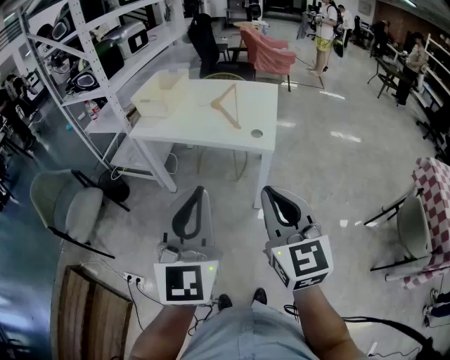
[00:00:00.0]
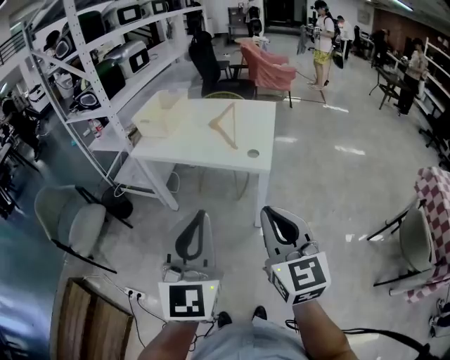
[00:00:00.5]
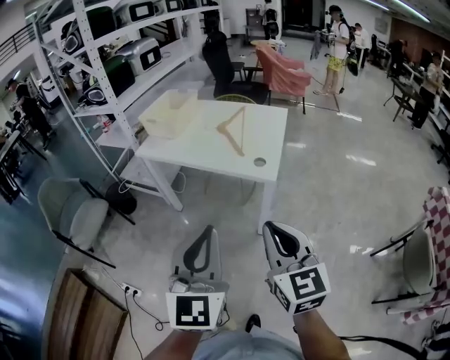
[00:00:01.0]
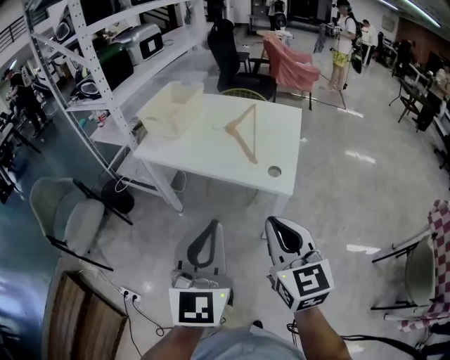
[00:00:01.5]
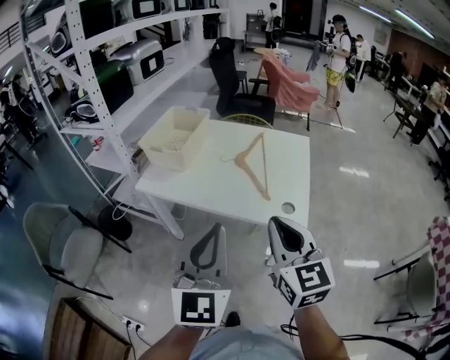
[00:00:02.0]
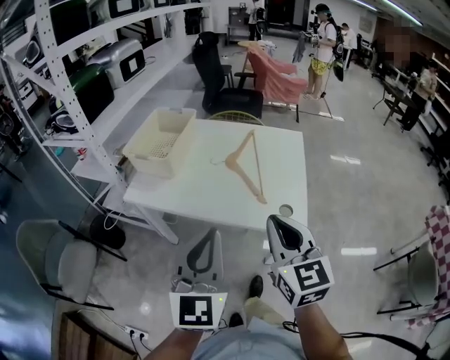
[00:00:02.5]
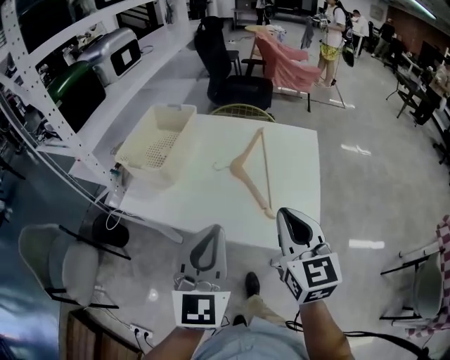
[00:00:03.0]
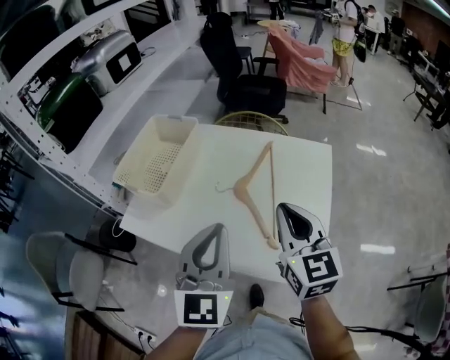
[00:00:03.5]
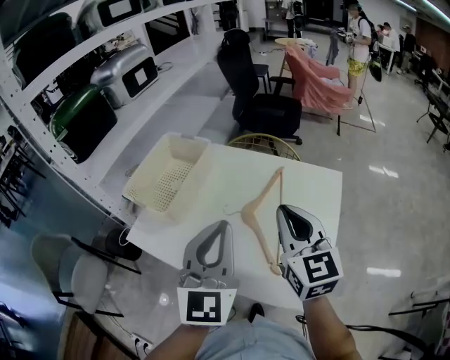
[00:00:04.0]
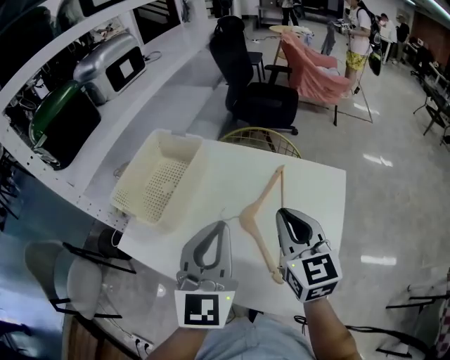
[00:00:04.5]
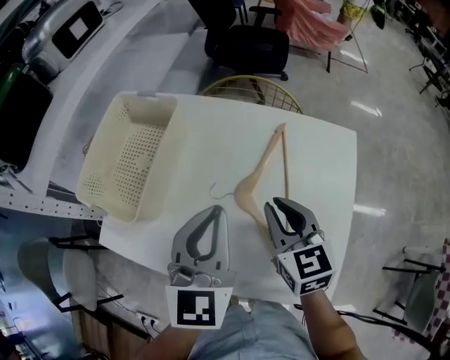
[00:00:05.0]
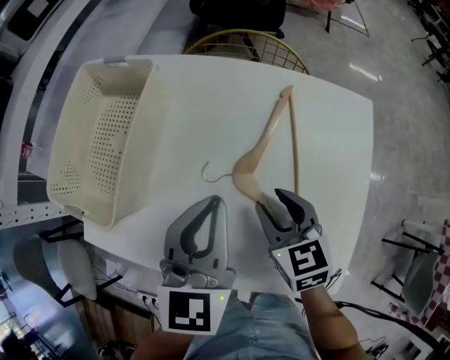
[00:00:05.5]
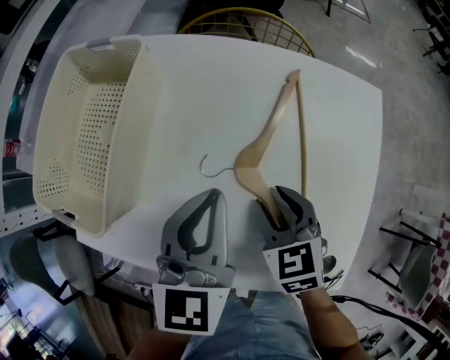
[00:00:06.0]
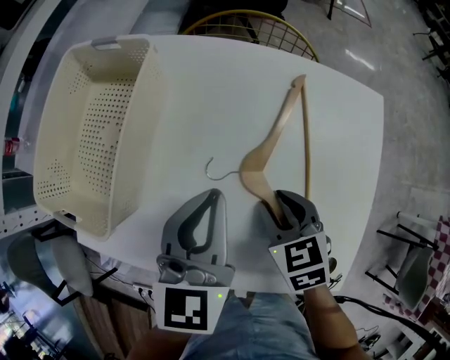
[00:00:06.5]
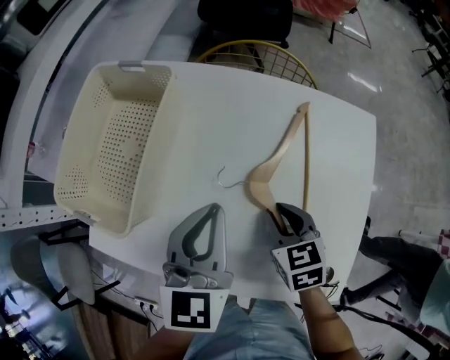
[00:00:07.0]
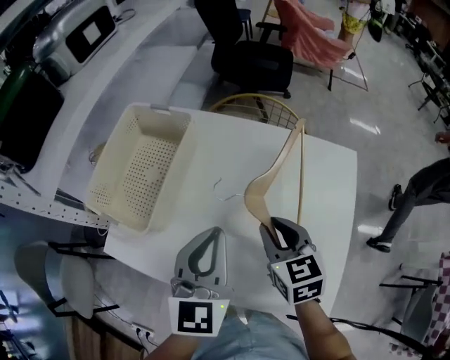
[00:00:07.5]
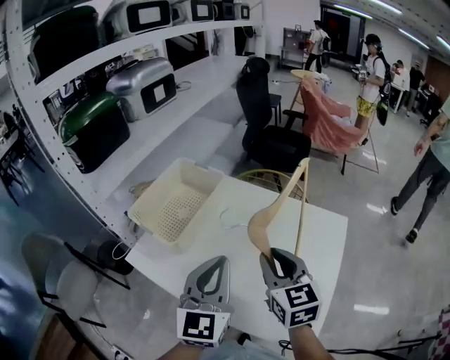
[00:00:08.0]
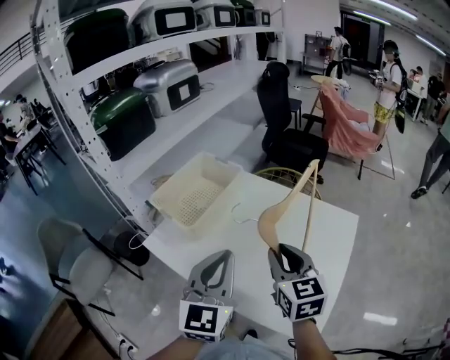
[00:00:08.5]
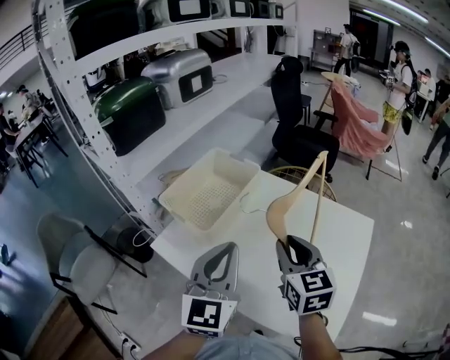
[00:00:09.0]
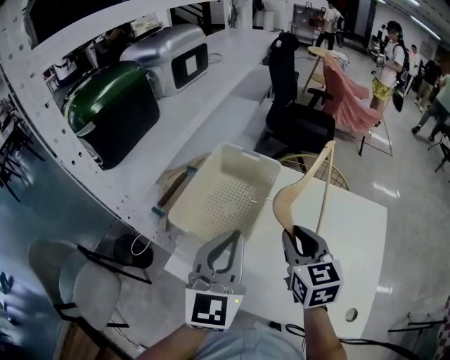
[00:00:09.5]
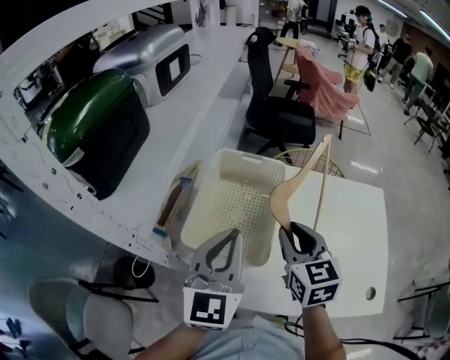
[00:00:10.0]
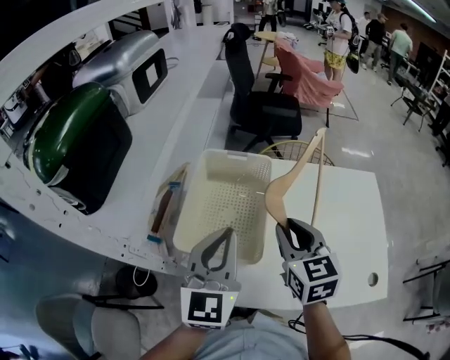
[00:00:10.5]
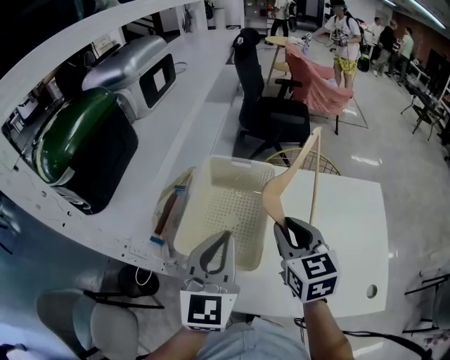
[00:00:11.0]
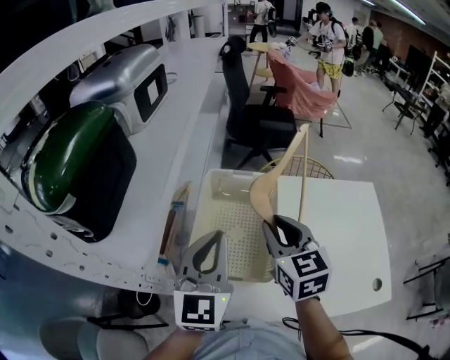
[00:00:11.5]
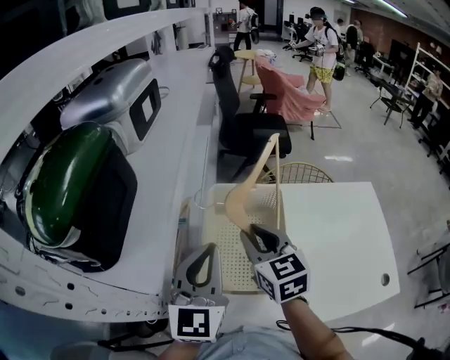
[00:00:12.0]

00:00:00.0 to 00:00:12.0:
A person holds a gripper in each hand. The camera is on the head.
00:00:00.0 to 00:00:02.0: Both grippers travel together forward, some 30 cm.
00:00:02.0 to 00:00:04.0: Both grippers move forward, some 35 cm.
00:00:04.0 to 00:00:06.0: The left gripper goes some 25 cm downward and forward, and changes its angle by some 30 degrees. Meanwhile the right gripper moves downward, roughly 30 cm, angles its fingers downward, by roughly 40 degrees, and opens its fingers.
00:00:06.0 to 00:00:08.0: The left gripper is displaced upward and backward by roughly 20 cm, and turns by some 20 degrees, while the right gripper travels upward by some 25 cm, and rotates about 30 degrees.
00:00:08.0 to 00:00:10.0: The grippers both shift to the left and forward by approximately 30 cm.
00:00:10.0 to 00:00:12.0: Both grippers travel together to the left and forward, some 15 cm.

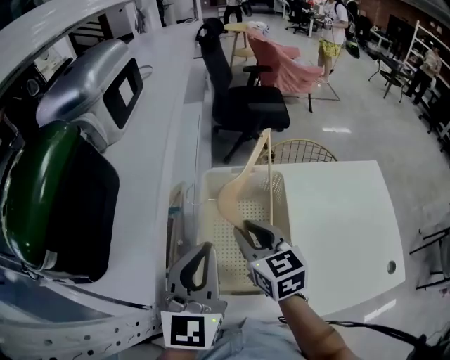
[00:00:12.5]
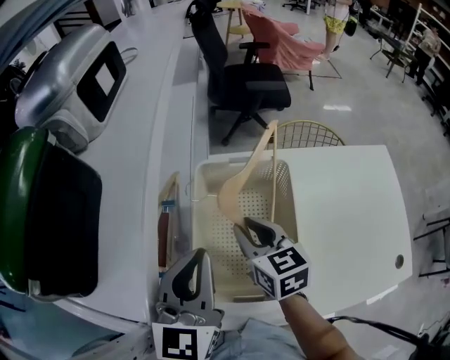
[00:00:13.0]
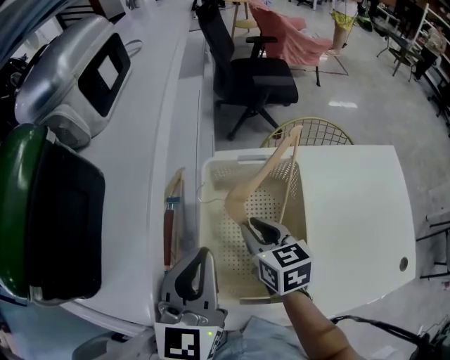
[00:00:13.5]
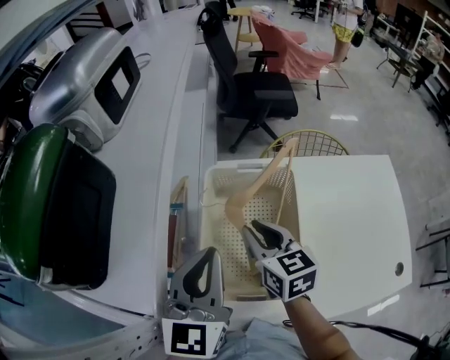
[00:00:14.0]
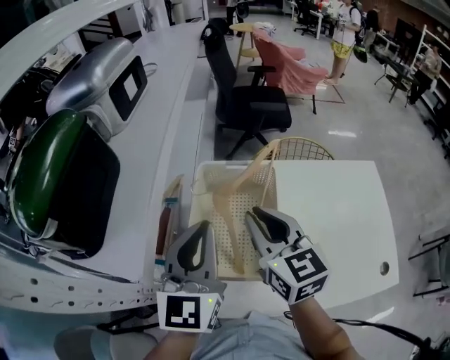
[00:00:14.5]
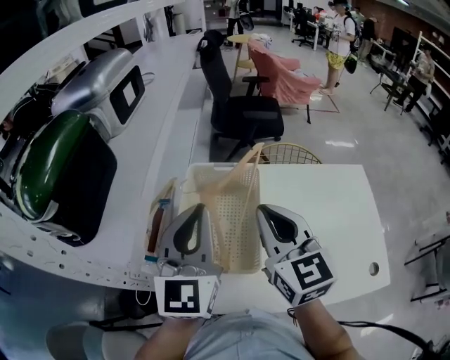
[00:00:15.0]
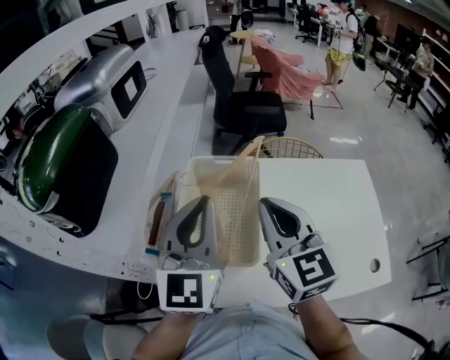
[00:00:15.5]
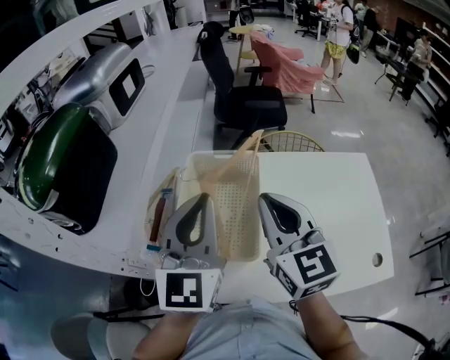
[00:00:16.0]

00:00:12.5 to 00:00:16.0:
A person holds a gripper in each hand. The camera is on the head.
00:00:12.5 to 00:00:14.5: The right gripper is displaced upward by about 10 cm.
00:00:14.5 to 00:00:16.0: The left gripper goes about 5 cm to the right, while the right gripper heads to the right and backward, covering some 10 cm.

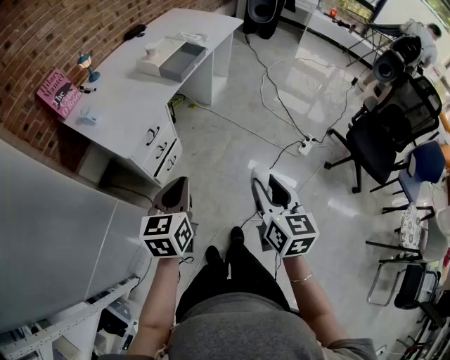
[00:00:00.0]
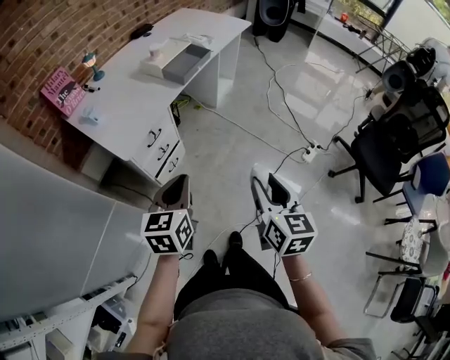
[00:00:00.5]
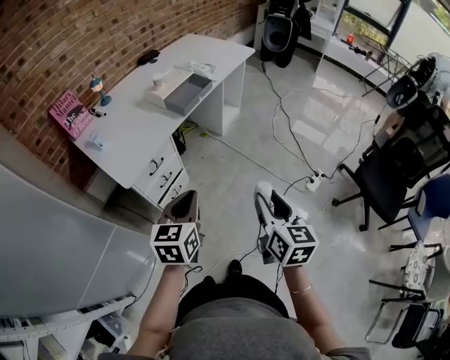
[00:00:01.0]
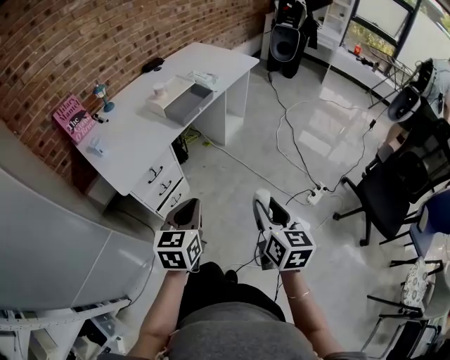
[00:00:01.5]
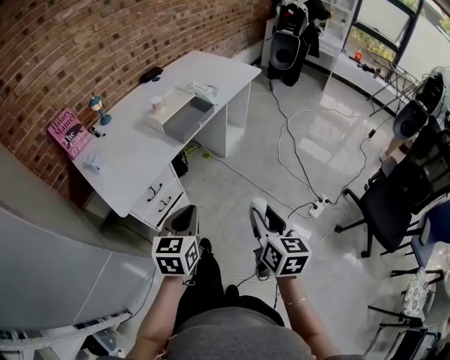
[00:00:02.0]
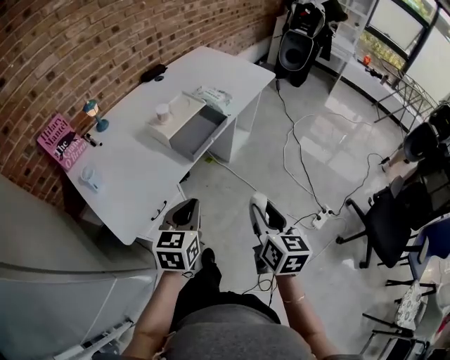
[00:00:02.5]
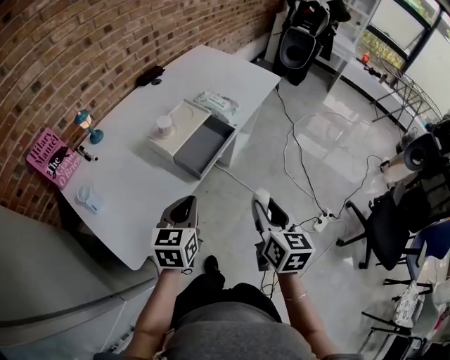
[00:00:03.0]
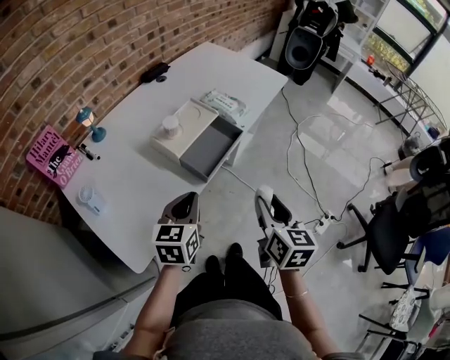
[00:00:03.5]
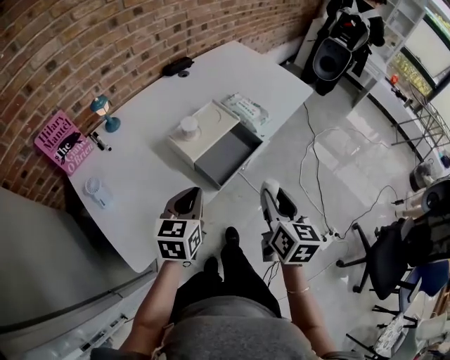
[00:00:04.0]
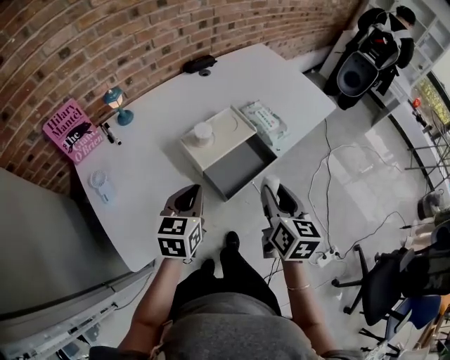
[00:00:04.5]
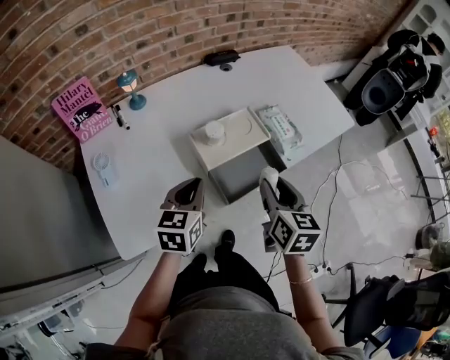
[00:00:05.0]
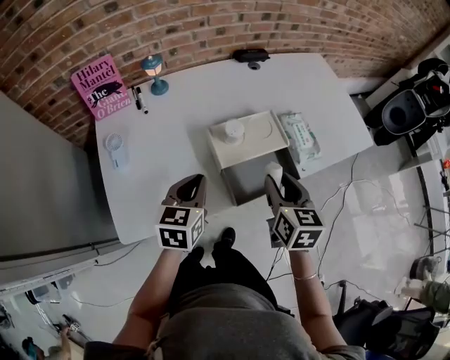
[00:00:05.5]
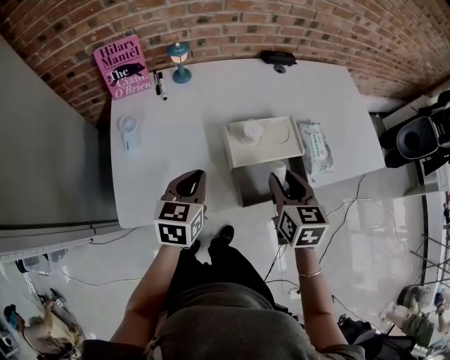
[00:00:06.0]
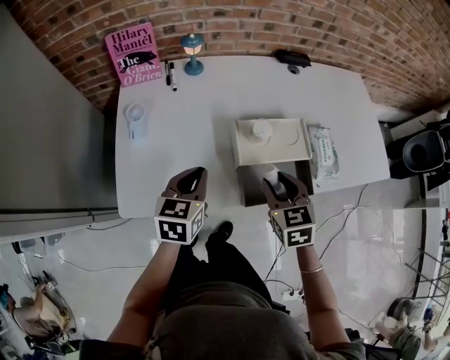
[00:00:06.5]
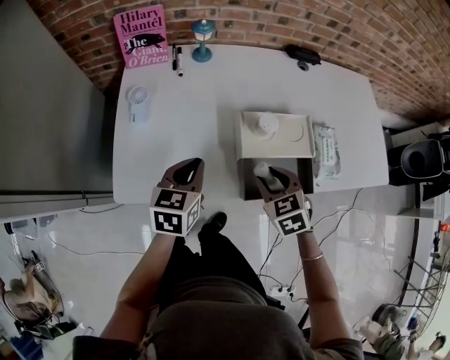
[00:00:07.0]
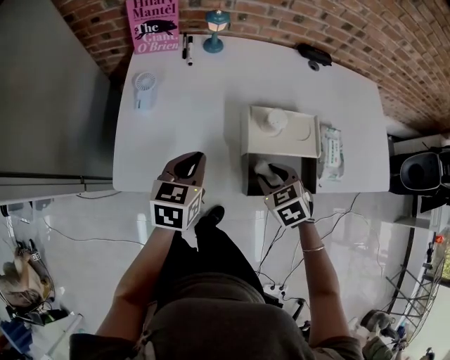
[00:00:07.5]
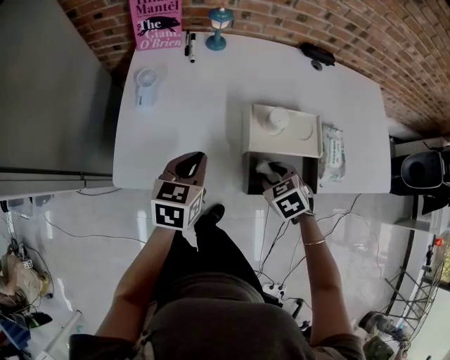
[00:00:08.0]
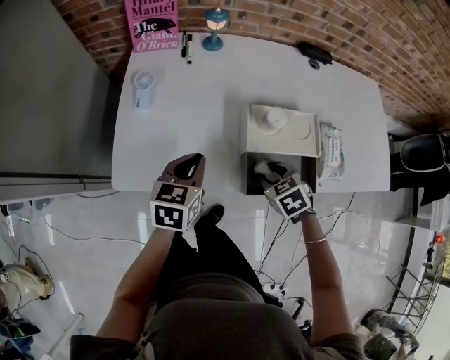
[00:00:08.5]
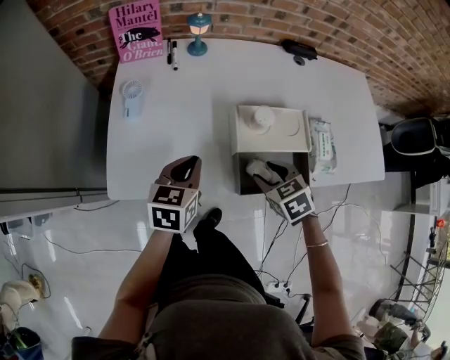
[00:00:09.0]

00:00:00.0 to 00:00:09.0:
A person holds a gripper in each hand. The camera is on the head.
00:00:00.0 to 00:00:02.0: Both grippers move forward and to the right, some 20 cm.
00:00:02.0 to 00:00:04.5: The right gripper moves forward, some 40 cm. Meanwhile the left gripper travels forward and to the left by some 35 cm.
00:00:04.5 to 00:00:07.0: The right gripper moves approximately 15 cm, and changes its angle by about 70 degrees, while the left gripper ends up some 10 cm from where it was, and swivels approximately 30 degrees.
00:00:07.0 to 00:00:09.0: There are only small adjustments of the grippers.

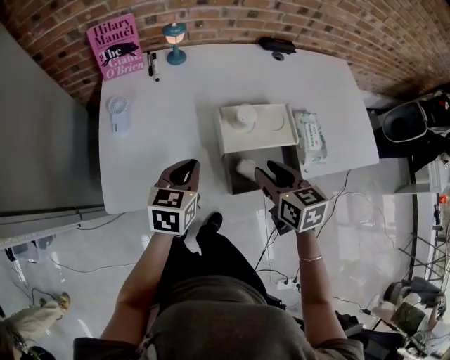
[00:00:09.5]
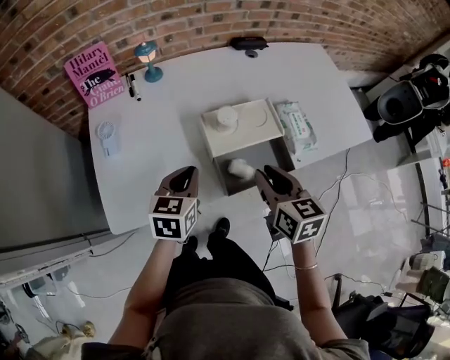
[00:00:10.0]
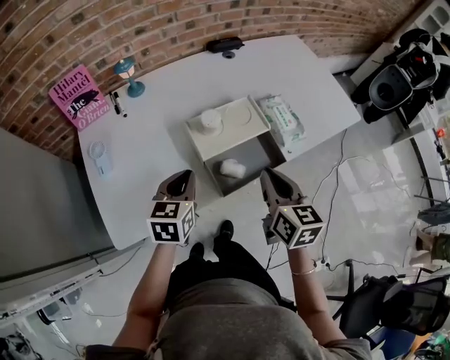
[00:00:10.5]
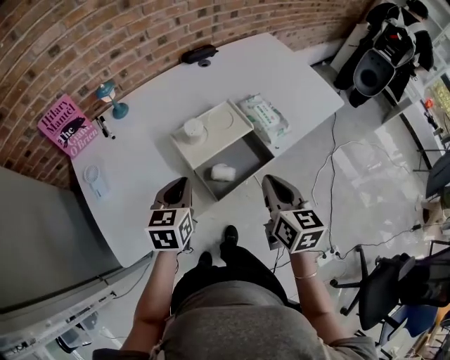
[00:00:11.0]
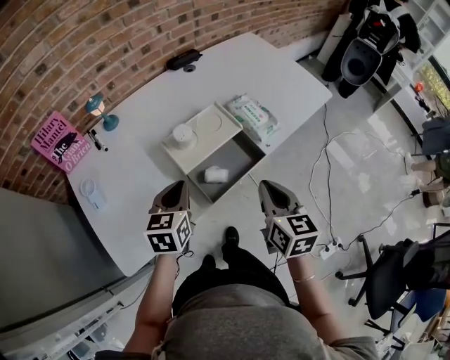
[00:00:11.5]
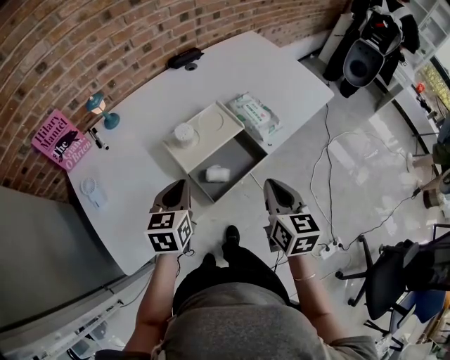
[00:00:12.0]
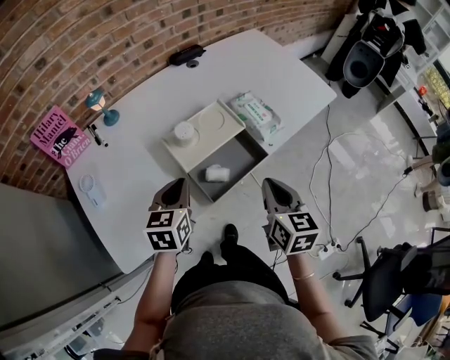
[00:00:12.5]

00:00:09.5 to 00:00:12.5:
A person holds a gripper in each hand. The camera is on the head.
00:00:09.5 to 00:00:11.0: The right gripper heads to the right and backward, covering approximately 10 cm, changes its angle by about 40 degrees, and closes, while the left gripper is displaced to the right by some 5 cm.
00:00:11.0 to 00:00:12.5: There are only small adjustments of the grippers.
